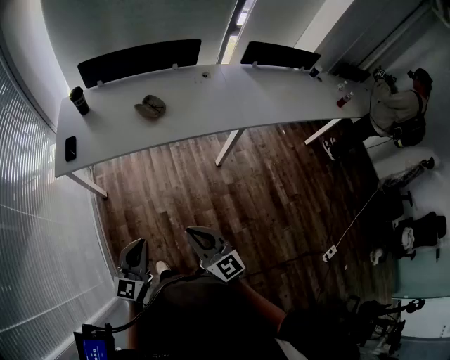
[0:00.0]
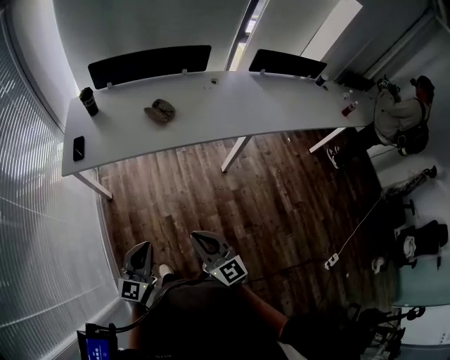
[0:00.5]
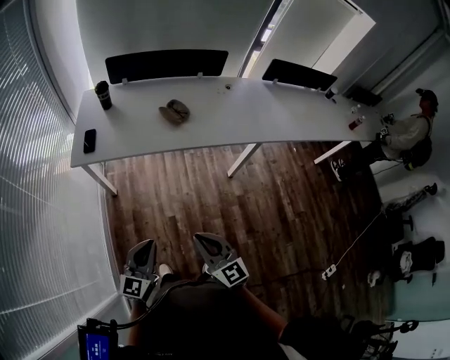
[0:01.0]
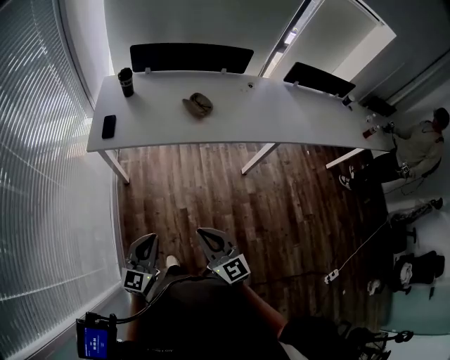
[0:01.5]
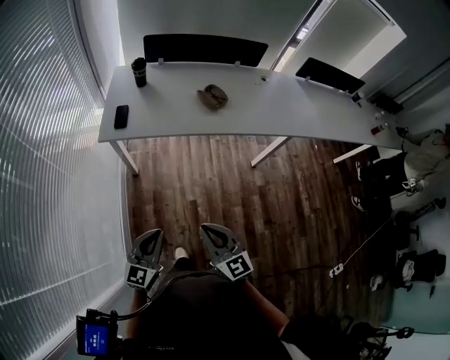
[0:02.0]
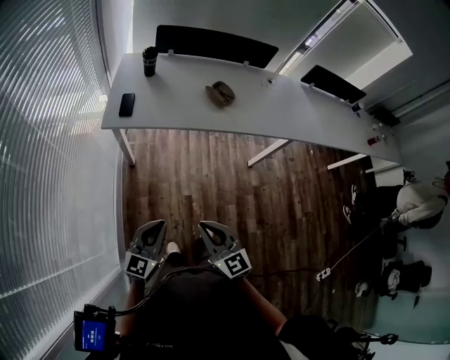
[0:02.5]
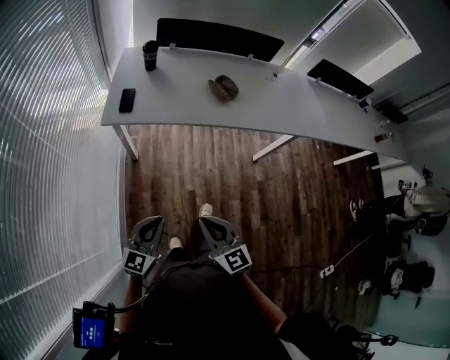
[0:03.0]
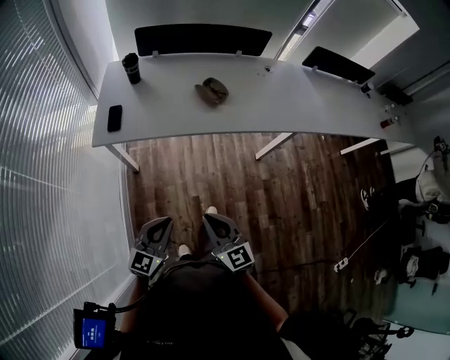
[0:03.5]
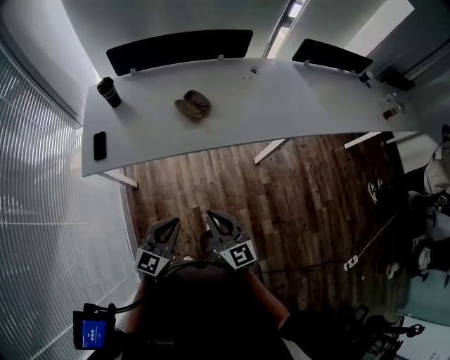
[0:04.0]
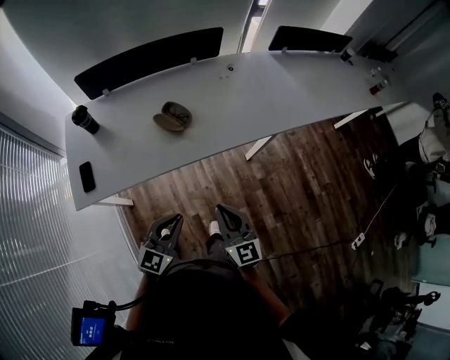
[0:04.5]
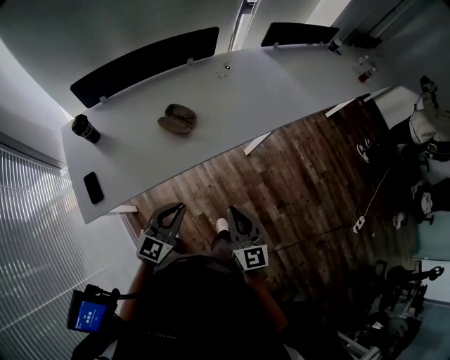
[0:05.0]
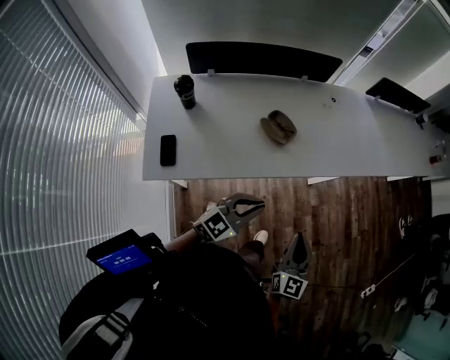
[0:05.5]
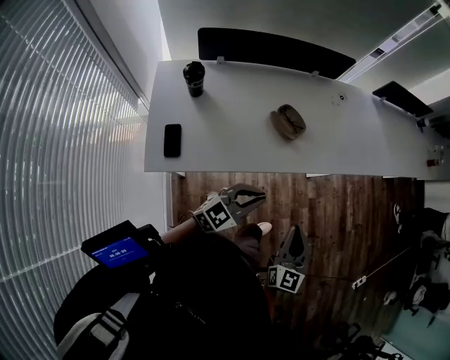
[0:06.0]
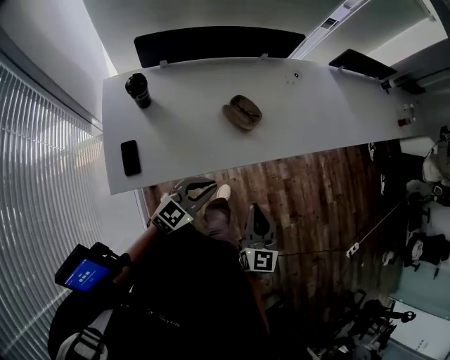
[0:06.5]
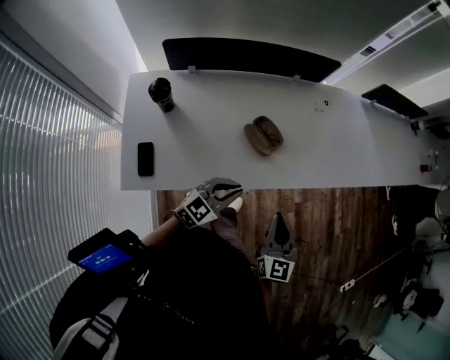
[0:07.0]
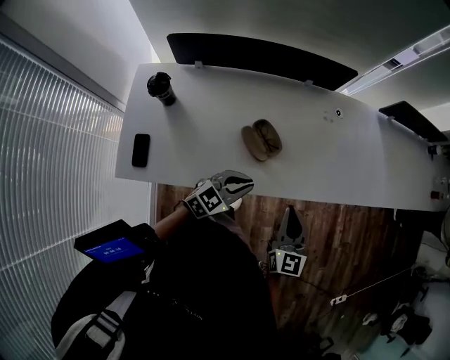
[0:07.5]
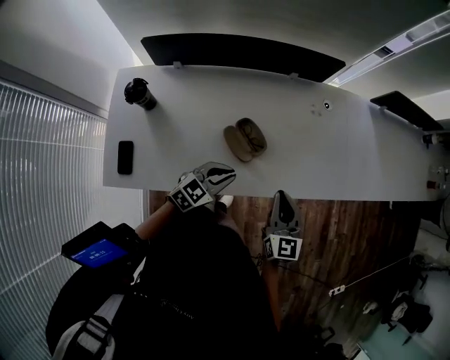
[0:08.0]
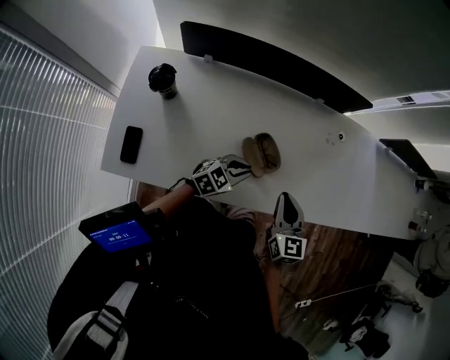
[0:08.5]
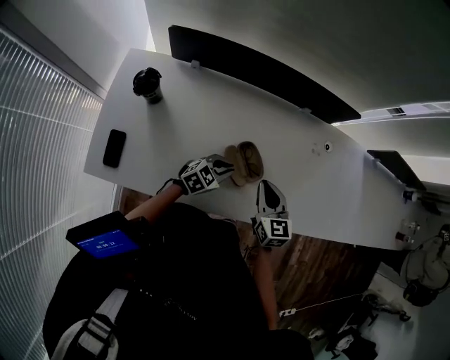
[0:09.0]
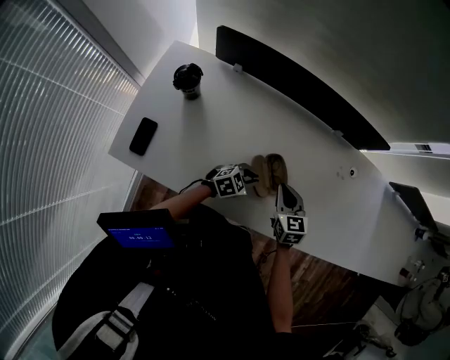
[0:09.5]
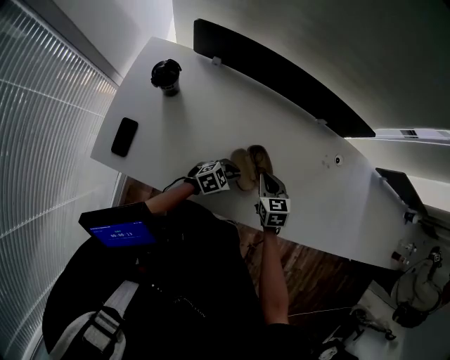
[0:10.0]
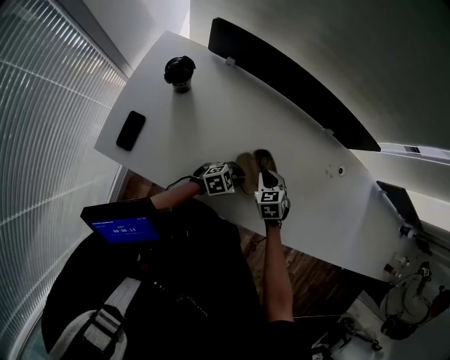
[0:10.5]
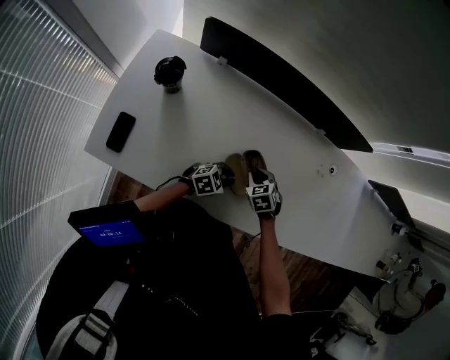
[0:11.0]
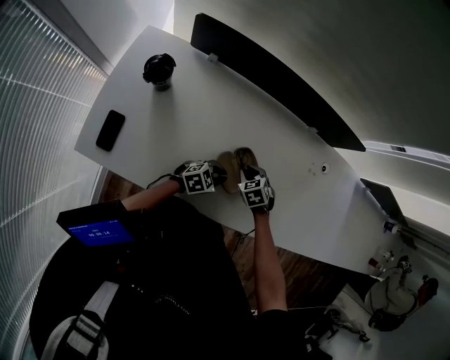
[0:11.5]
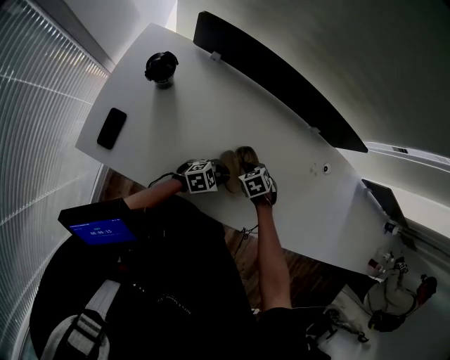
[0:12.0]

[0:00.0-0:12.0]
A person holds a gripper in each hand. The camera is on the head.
0:00.0 to 0:02.0: The grippers both shift to the left by about 15 cm.
0:02.0 to 0:04.0: Both grippers travel together forward and to the right, approximately 25 cm.
0:04.0 to 0:06.0: The right gripper moves about 10 cm, and turns by roughly 40 degrees; the left gripper moves about 20 cm, and swivels approximately 30 degrees.
0:06.0 to 0:08.0: Both grippers move forward, roughly 25 cm. The left gripper changes its angle by about 20 degrees, while the right gripper swivels some 20 degrees.
0:08.0 to 0:10.0: The left gripper goes some 20 cm downward and forward, while the right gripper goes roughly 25 cm downward, to the left and forward, and changes its angle by roughly 40 degrees.
0:10.0 to 0:12.0: The right gripper is displaced downward by approximately 10 cm, and angles its fingers downward, by about 30 degrees.

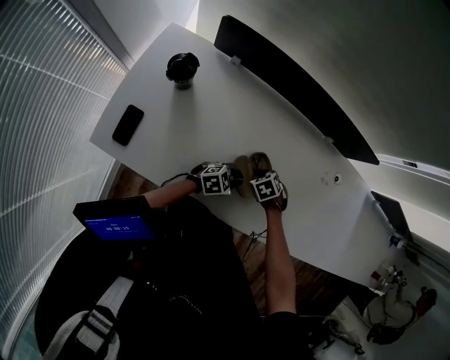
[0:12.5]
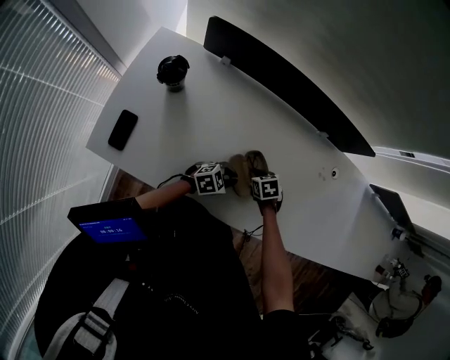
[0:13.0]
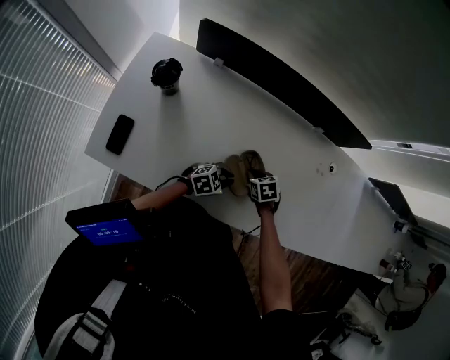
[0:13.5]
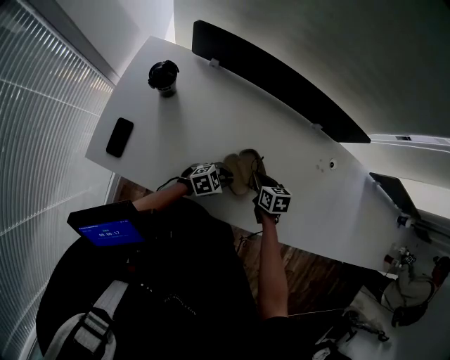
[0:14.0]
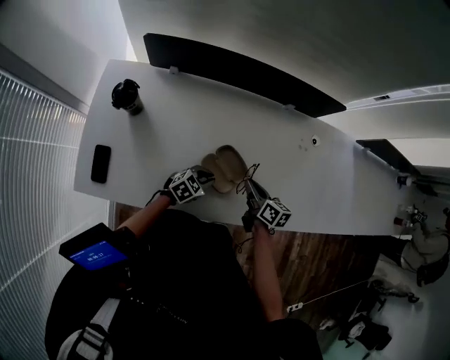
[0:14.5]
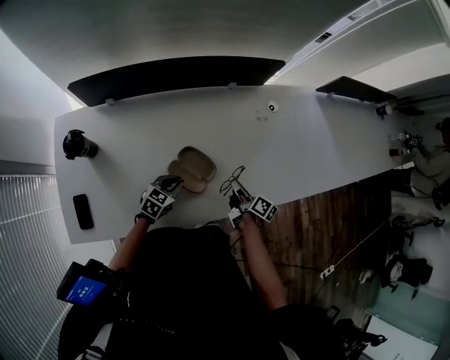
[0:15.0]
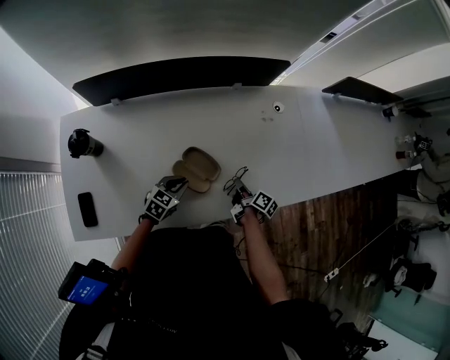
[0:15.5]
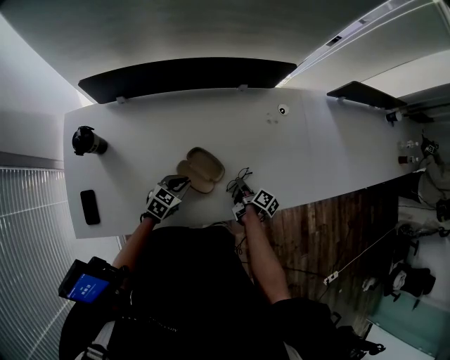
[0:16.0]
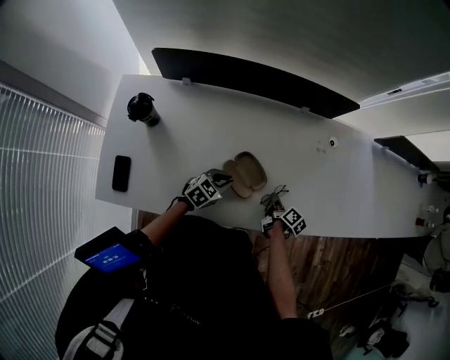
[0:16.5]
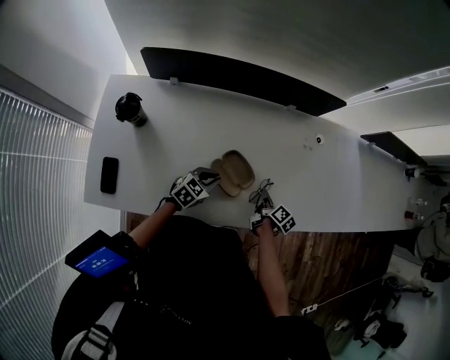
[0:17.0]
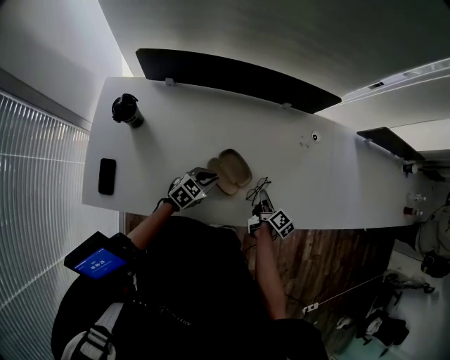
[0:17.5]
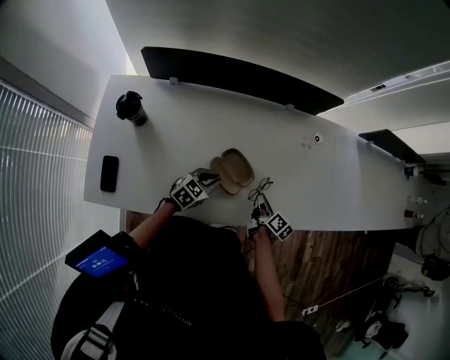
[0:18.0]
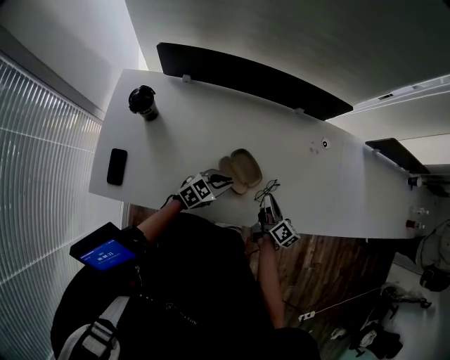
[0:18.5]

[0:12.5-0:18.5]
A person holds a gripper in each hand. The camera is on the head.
0:12.5 to 0:14.5: The right gripper travels upward by approximately 10 cm, and points its fingers some 50 degrees further upward.
0:14.5 to 0:16.5: The right gripper moves downward and to the right, approximately 15 cm, and turns by approximately 40 degrees.
0:16.5 to 0:18.5: The right gripper is displaced upward by some 10 cm, and turns by some 30 degrees.

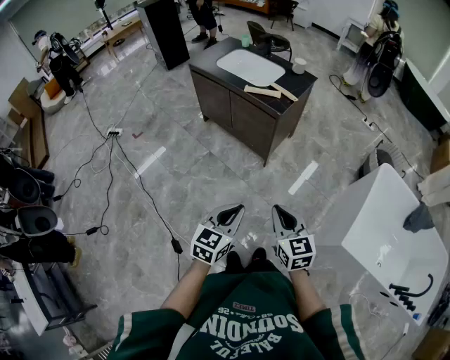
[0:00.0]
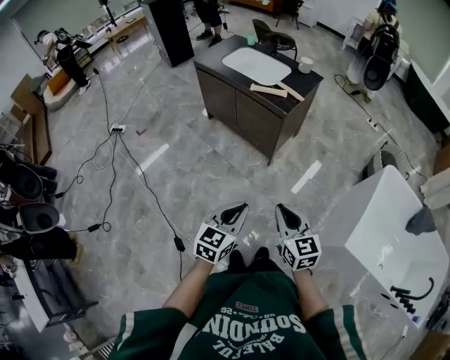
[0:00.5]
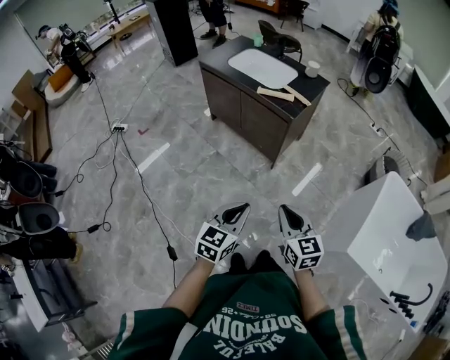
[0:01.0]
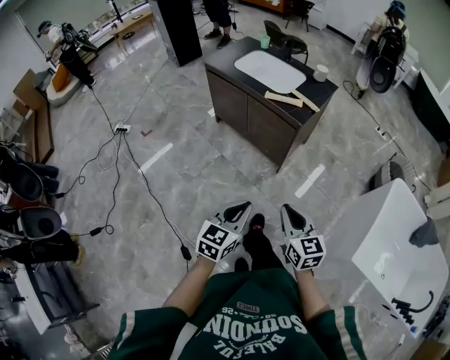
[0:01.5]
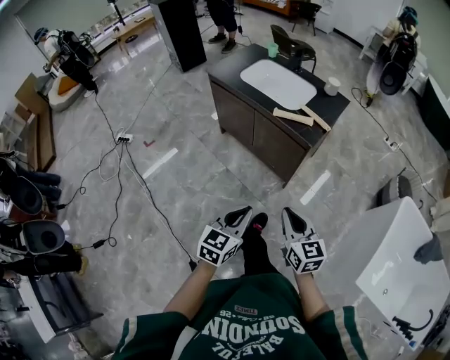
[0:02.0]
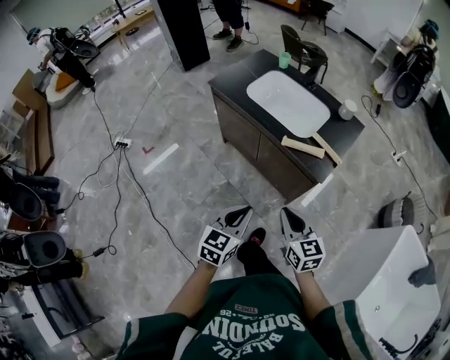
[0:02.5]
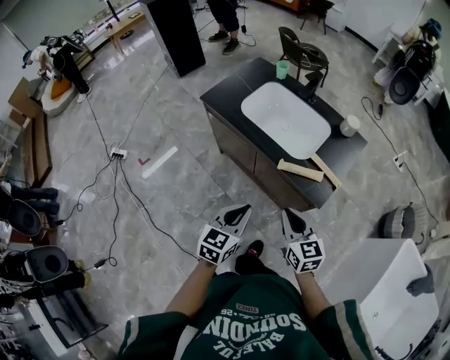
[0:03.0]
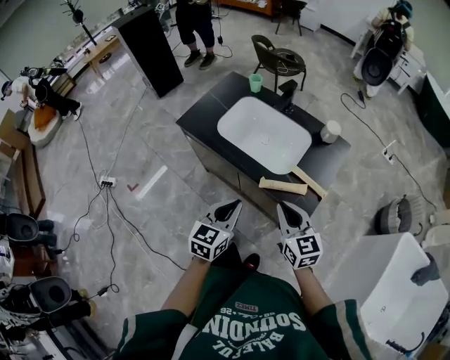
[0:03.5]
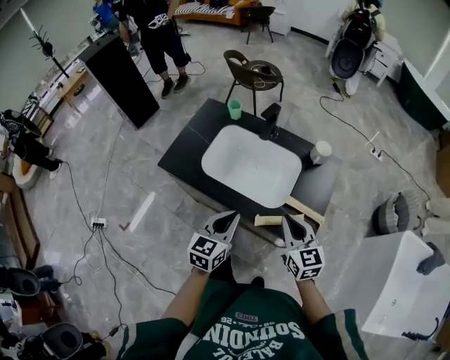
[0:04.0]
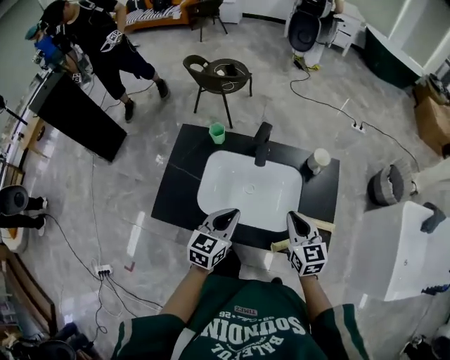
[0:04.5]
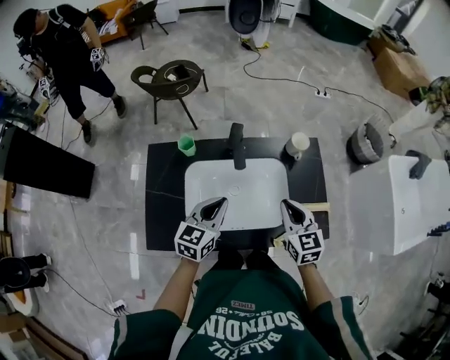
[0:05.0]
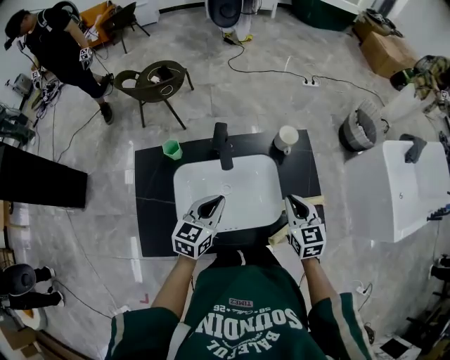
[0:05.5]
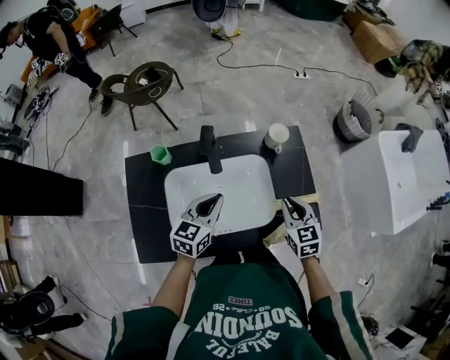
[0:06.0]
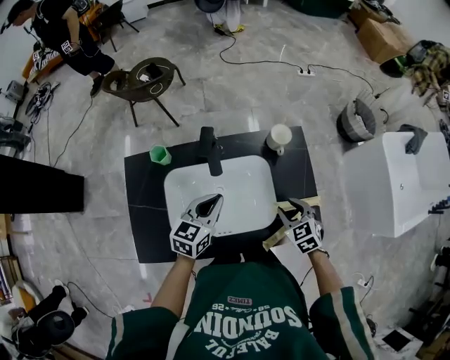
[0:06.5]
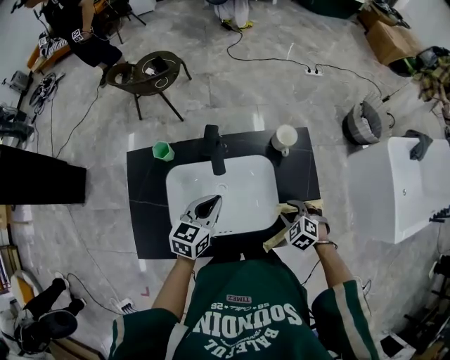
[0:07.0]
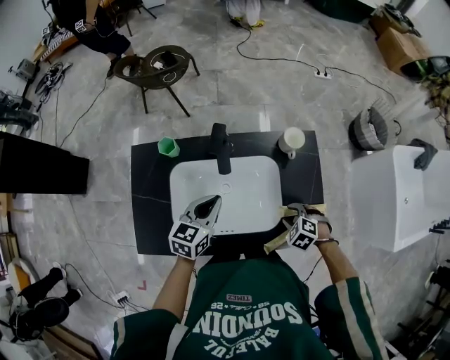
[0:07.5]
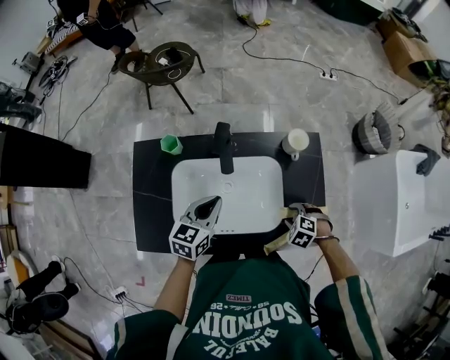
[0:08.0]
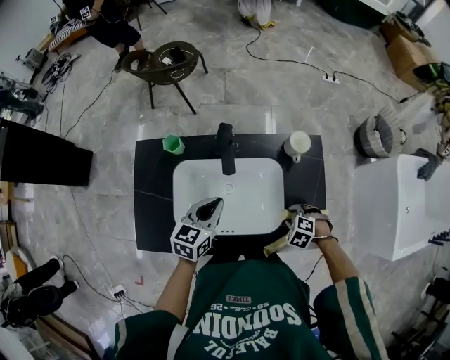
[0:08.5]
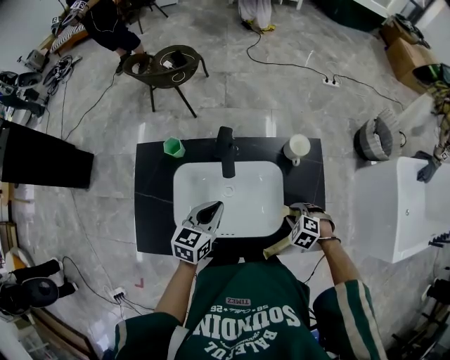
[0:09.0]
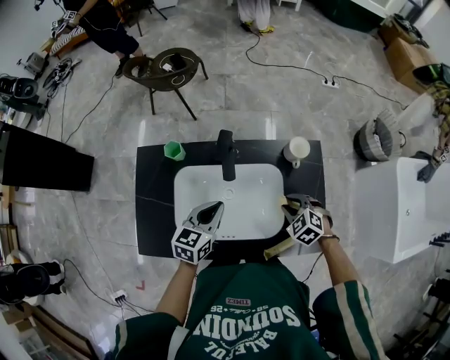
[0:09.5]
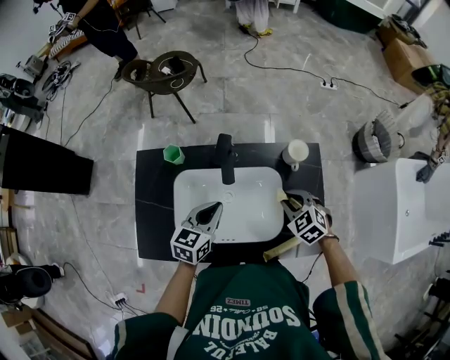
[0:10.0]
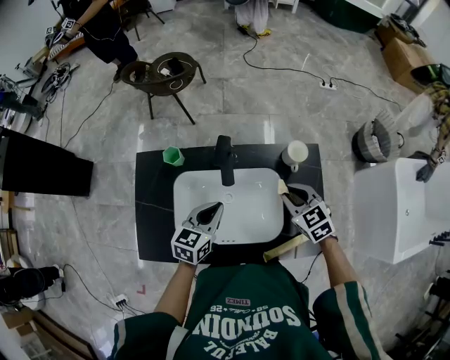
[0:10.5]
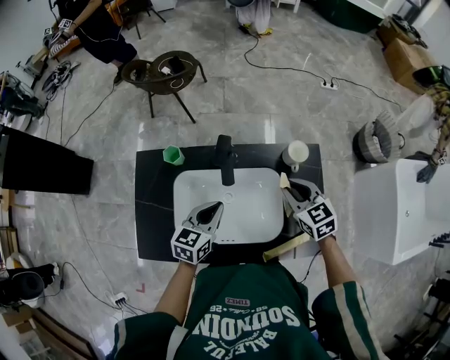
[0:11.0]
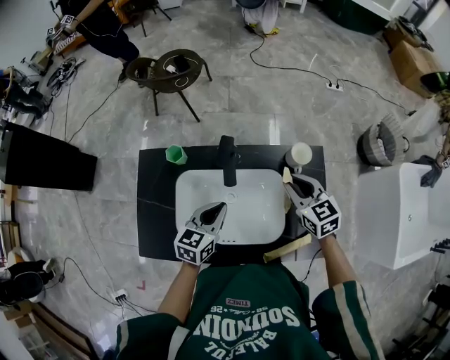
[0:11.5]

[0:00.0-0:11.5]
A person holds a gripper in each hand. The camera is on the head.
0:00.0 to 0:02.0: The grippers both shift forward and to the left by about 20 cm.
0:02.0 to 0:04.0: Both grippers are carried forward, approximately 50 cm.
0:04.0 to 0:06.0: The right gripper ends up some 15 cm from where it was, and turns by approximately 40 degrees; the left gripper changes place by about 25 cm, and swivels some 40 degrees.
0:06.0 to 0:07.5: The right gripper moves downward, roughly 15 cm, points its fingers roughly 40 degrees further downward, and opens its fingers.
0:07.5 to 0:09.5: The right gripper moves about 10 cm.
0:09.5 to 0:11.5: The right gripper goes about 15 cm upward and forward, and tilts its fingers roughly 30 degrees upward.
